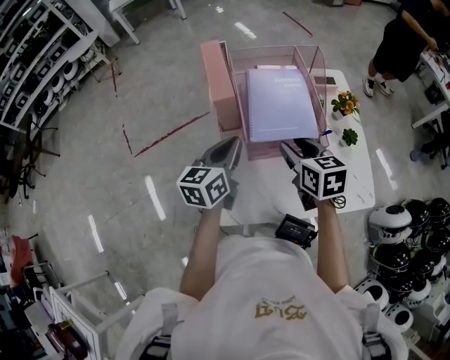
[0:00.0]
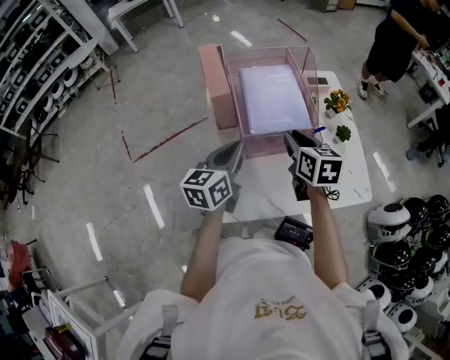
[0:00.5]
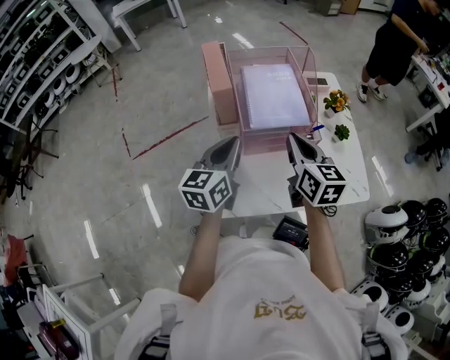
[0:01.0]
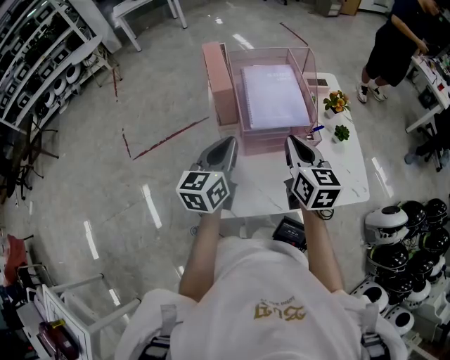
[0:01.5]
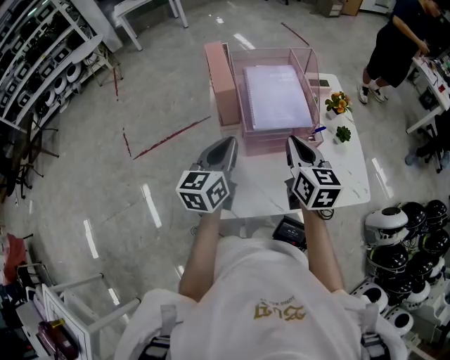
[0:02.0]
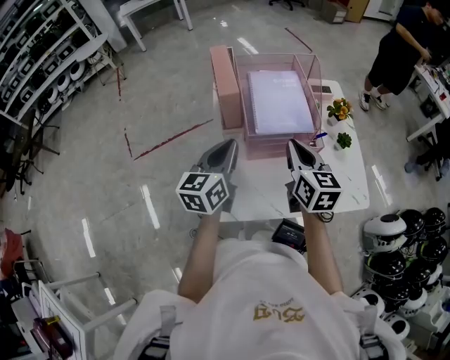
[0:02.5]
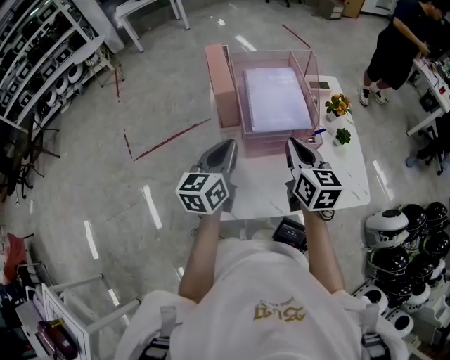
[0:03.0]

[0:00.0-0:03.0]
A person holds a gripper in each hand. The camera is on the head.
0:00.0 to 0:01.5: The right gripper moves approximately 5 cm, and closes up. The left gripper shifts approximately 5 cm backward.
0:01.5 to 0:03.0: The grippers move only a little.

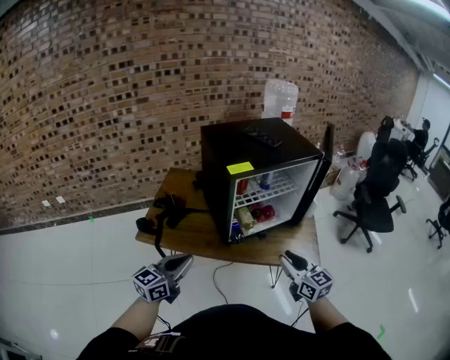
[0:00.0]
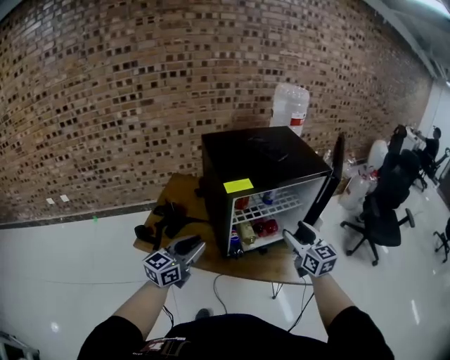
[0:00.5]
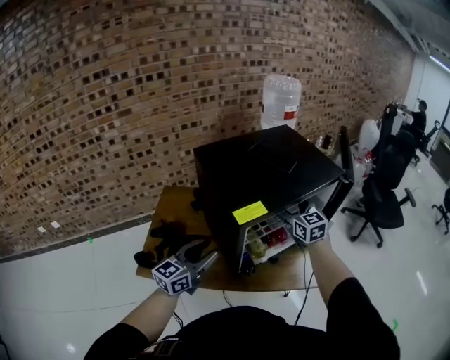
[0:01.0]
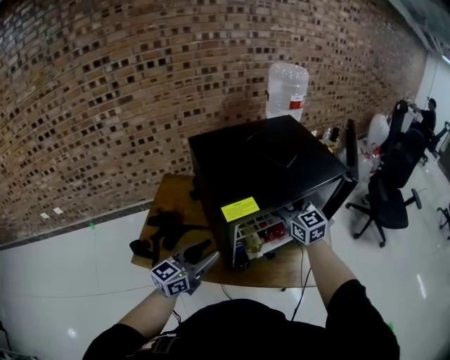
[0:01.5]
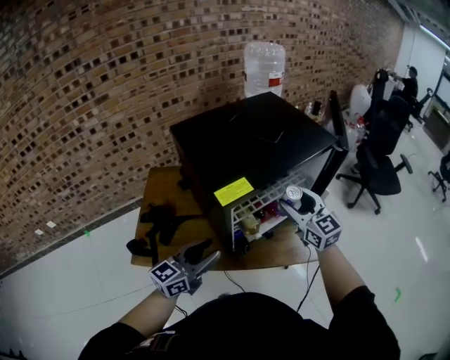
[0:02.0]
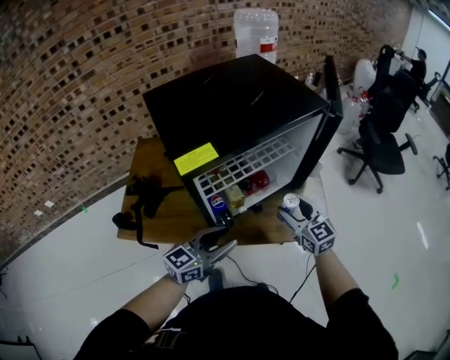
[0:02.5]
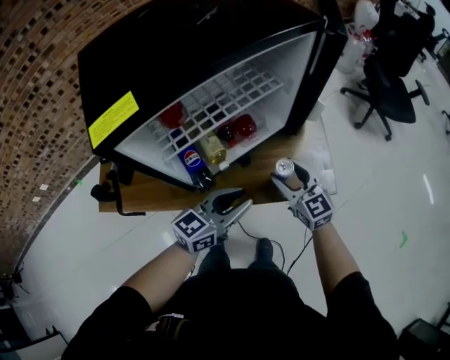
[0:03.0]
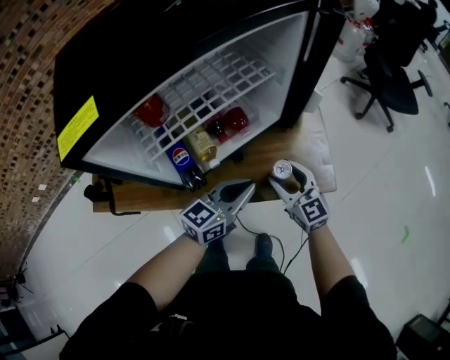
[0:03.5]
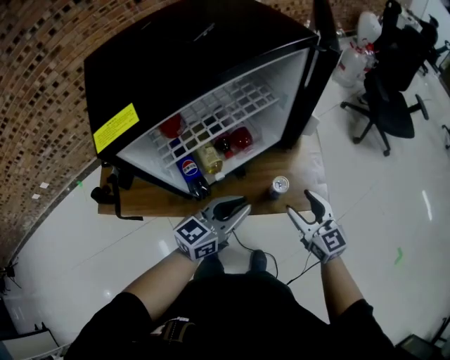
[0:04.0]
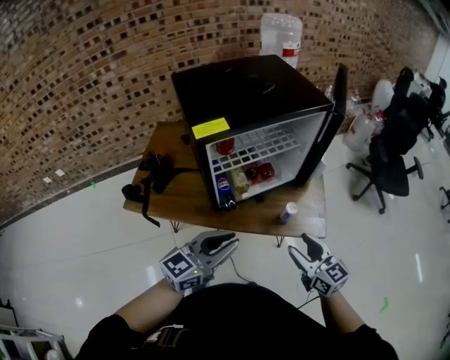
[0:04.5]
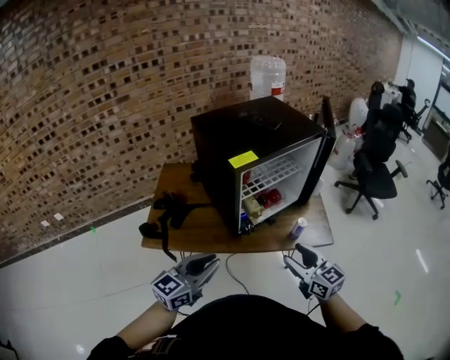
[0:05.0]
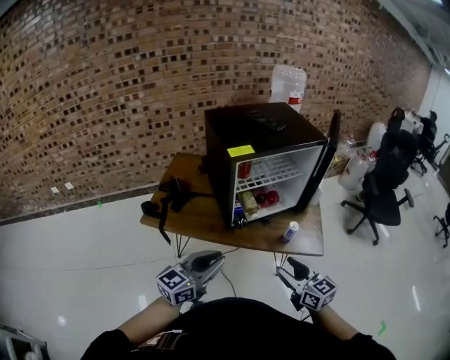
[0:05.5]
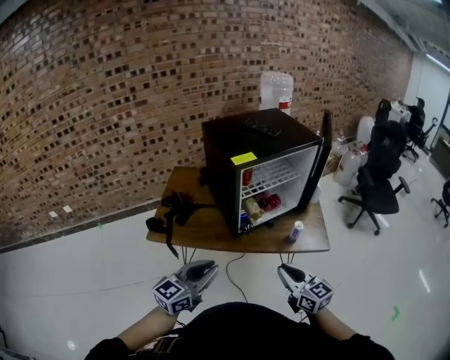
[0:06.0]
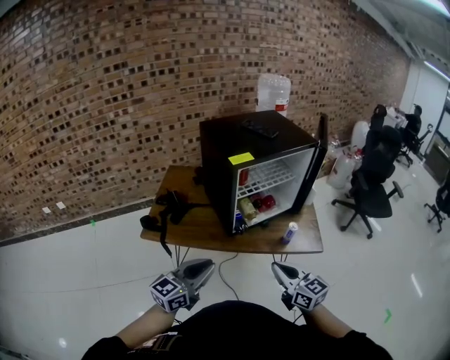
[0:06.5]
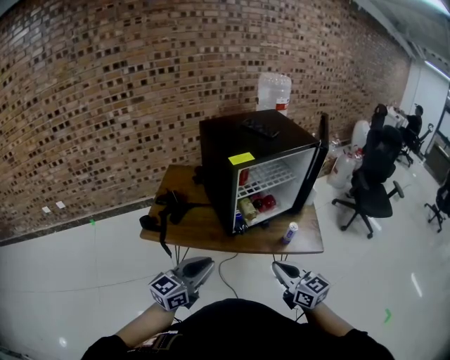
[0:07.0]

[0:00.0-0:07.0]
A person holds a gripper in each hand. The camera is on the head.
0:00.0 to 0:02.0: Both grippers move forward, about 25 cm. The right gripper opens, then closes again. Meanwhile the left gripper opens its fingers.
0:02.0 to 0:03.5: The left gripper shifts about 35 cm to the right and downward, and closes. Meanwhile the right gripper travels downward and to the right by some 35 cm.
0:03.5 to 0:05.0: The left gripper shifts approximately 50 cm backward, to the left and upward, while the right gripper shifts roughly 40 cm backward, upward and to the left.
0:05.0 to 0:07.0: The grippers both shift backward by about 5 cm. The left gripper goes to the right and returns, approximately 10 cm each way. Meanwhile the right gripper closes.

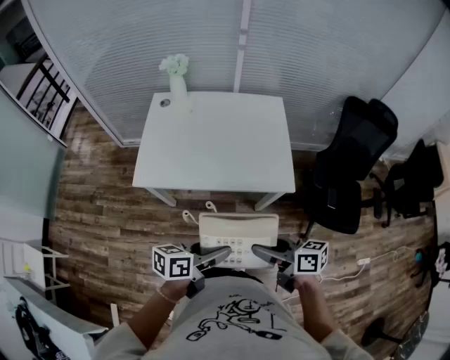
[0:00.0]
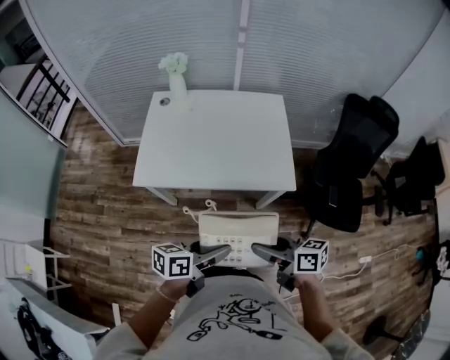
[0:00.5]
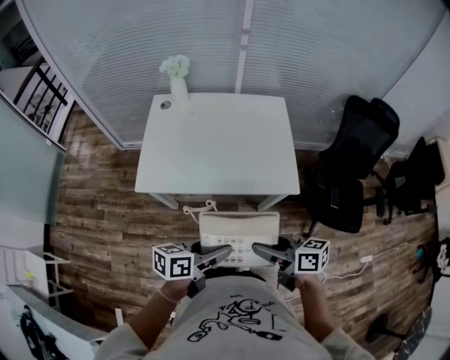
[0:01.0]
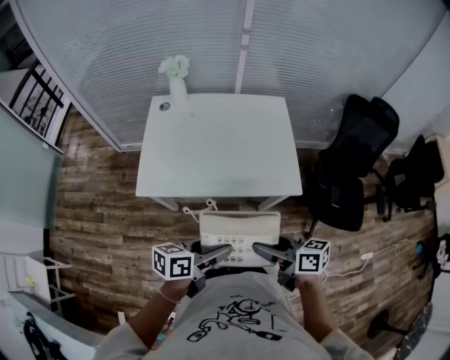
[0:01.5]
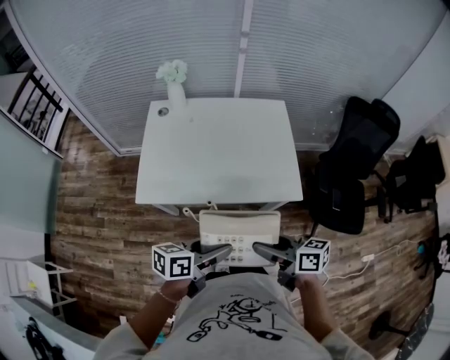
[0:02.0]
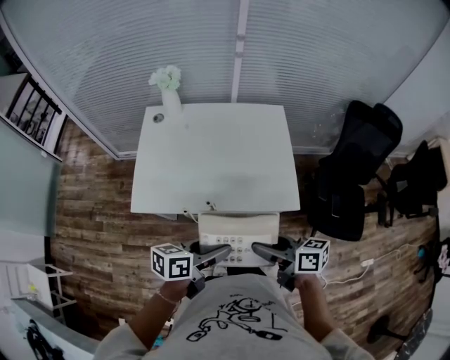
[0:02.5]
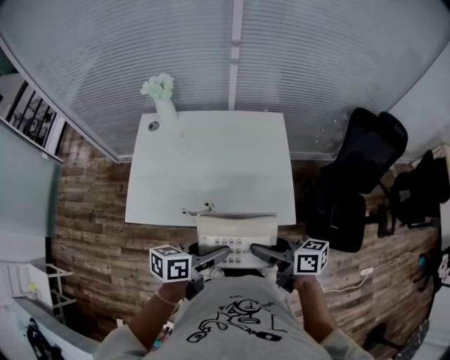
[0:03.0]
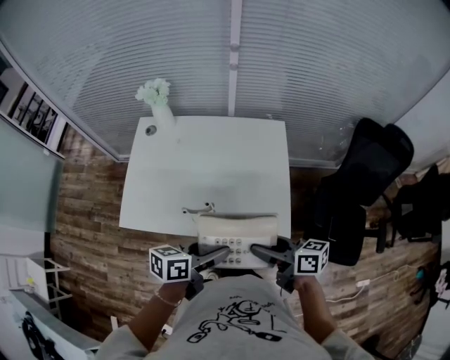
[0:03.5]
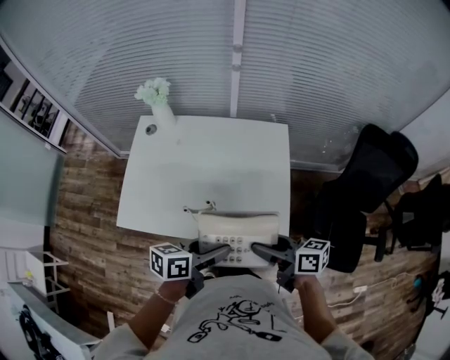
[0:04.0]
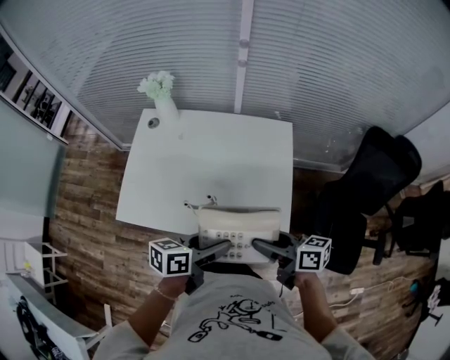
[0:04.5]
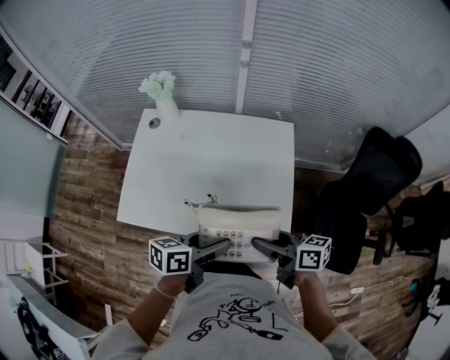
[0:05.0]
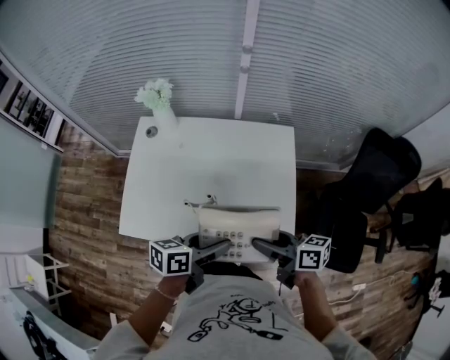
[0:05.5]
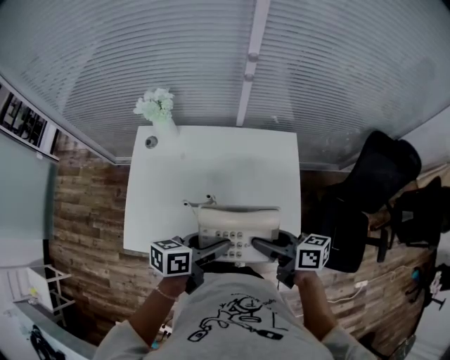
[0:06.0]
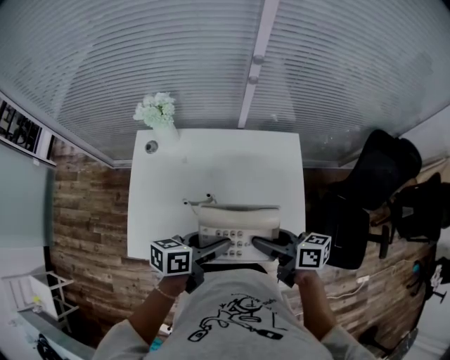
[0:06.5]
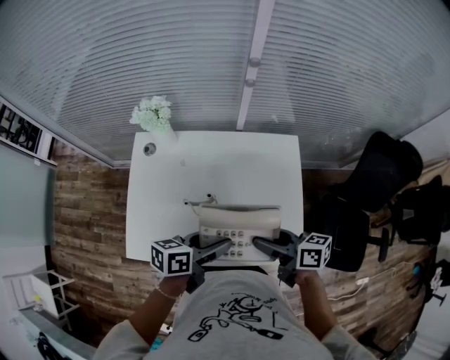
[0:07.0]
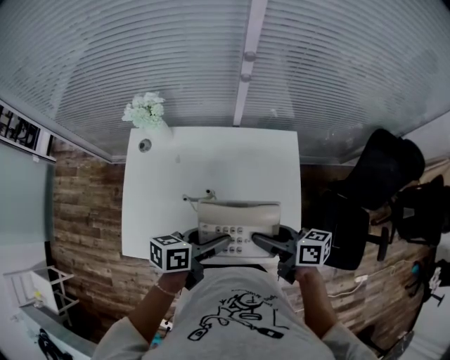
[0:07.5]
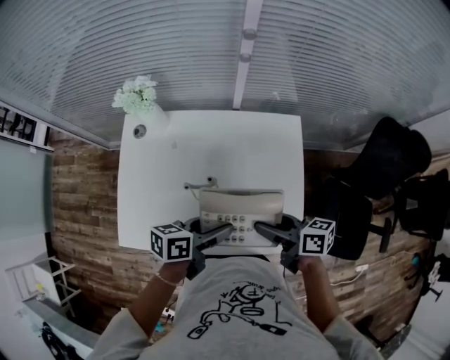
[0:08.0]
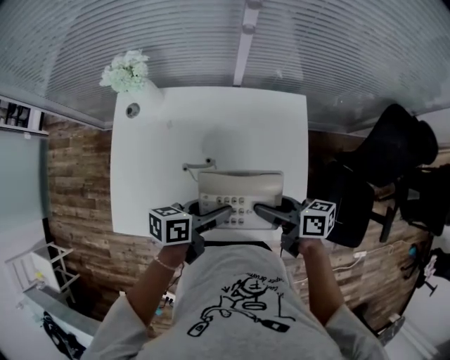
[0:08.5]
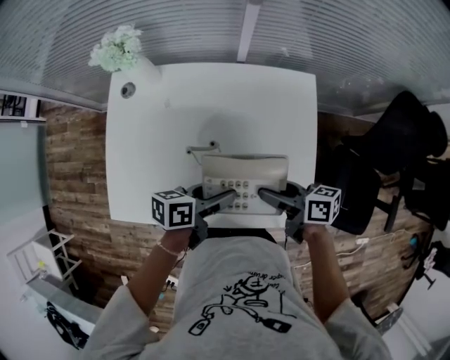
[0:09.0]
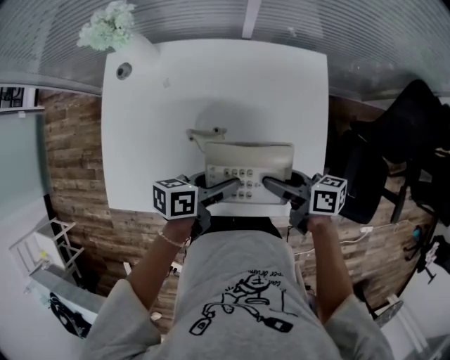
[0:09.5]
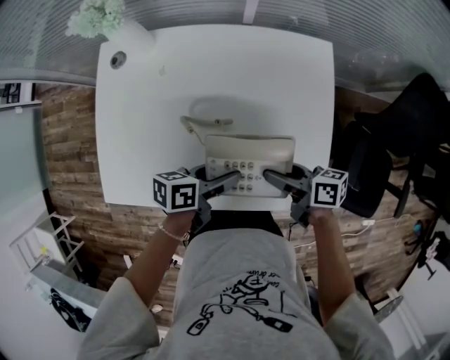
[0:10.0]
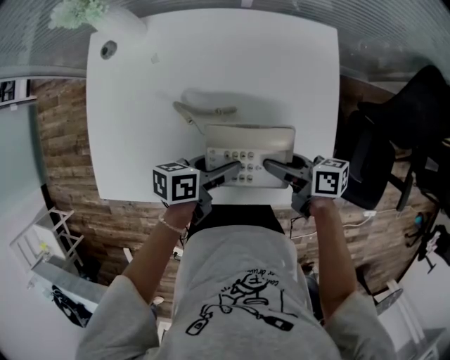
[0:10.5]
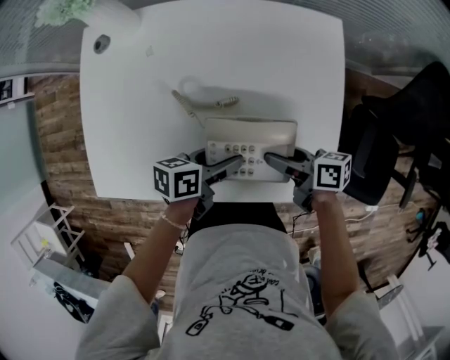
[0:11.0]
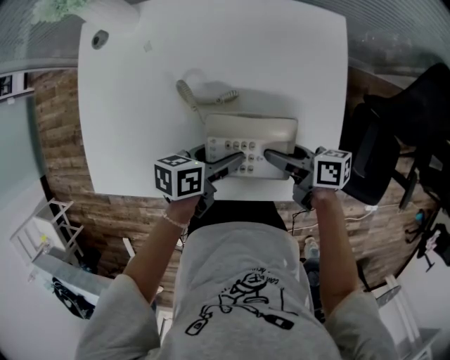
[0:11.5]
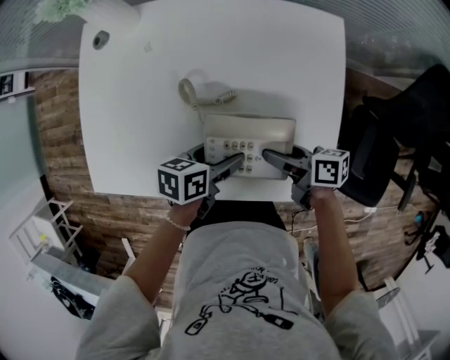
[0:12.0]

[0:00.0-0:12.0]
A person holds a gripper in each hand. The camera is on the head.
0:00.0 to 0:02.0: The grippers both shift forward by roughly 5 cm.
0:02.0 to 0:04.0: Both grippers move forward and to the right, some 20 cm.
0:04.0 to 0:06.0: The grippers both shift forward and to the left by about 10 cm.
0:06.0 to 0:08.0: Both grippers travel together forward, approximately 5 cm.
0:08.0 to 0:10.0: The grippers both shift downward by approximately 15 cm.
0:10.0 to 0:12.0: The two grippers go approximately 5 cm downward.

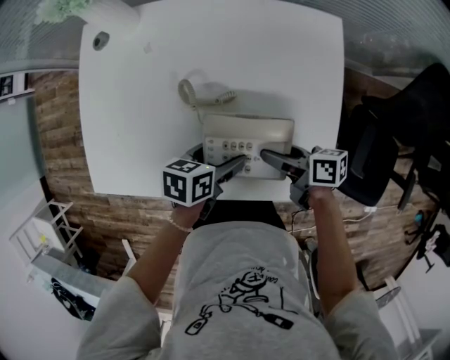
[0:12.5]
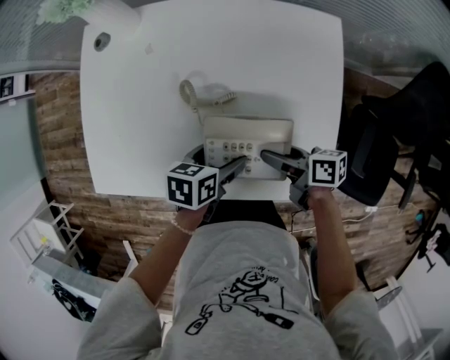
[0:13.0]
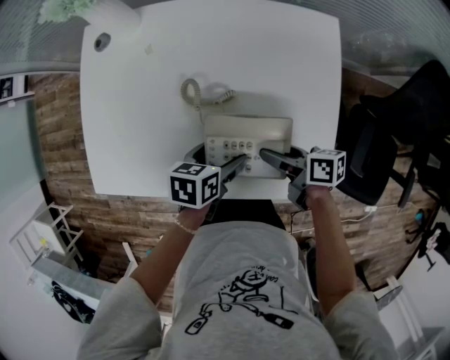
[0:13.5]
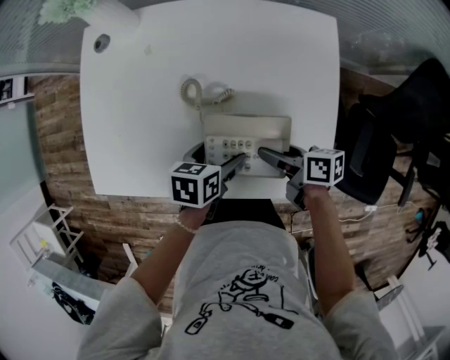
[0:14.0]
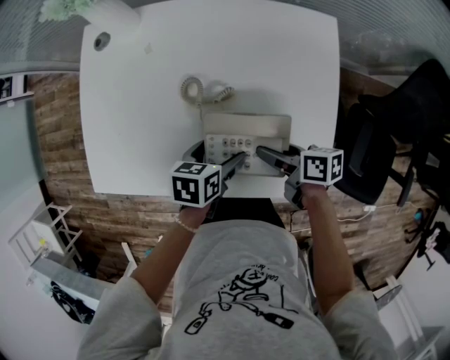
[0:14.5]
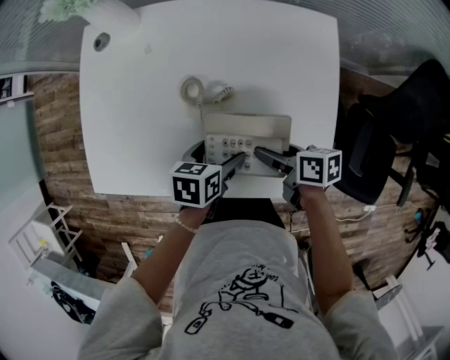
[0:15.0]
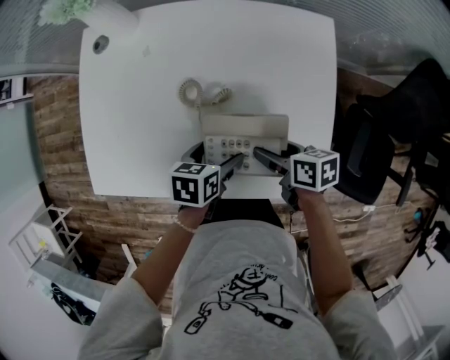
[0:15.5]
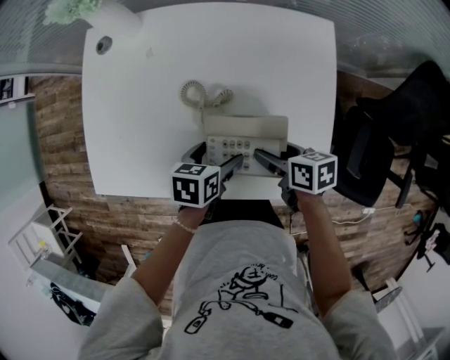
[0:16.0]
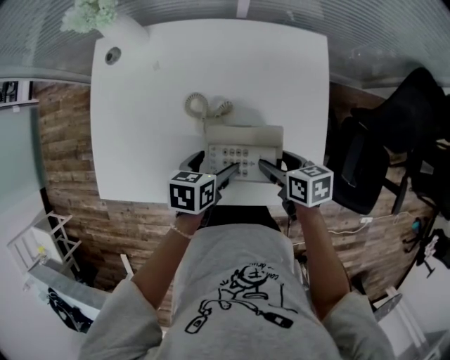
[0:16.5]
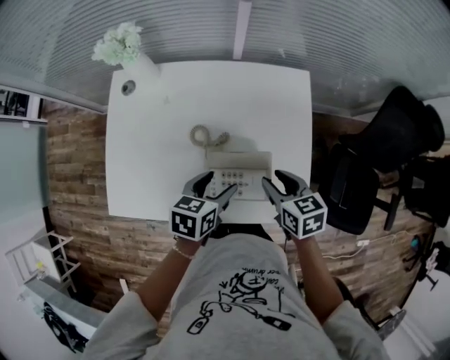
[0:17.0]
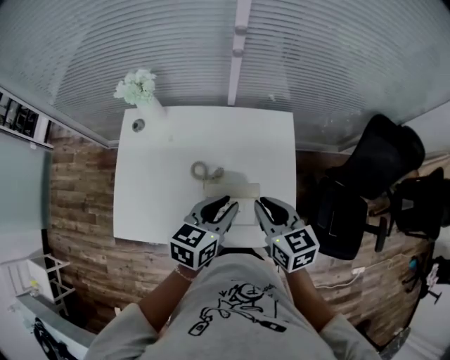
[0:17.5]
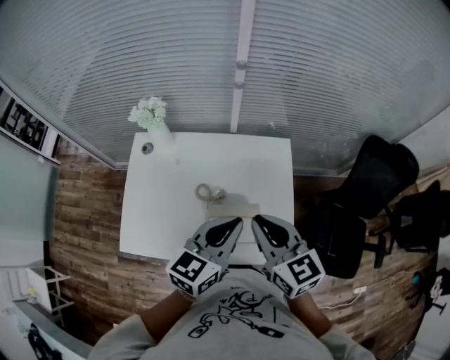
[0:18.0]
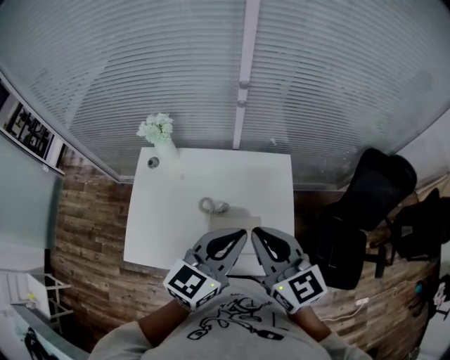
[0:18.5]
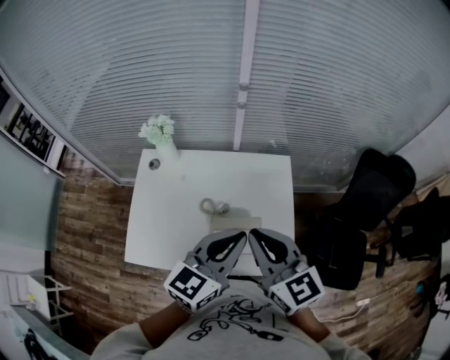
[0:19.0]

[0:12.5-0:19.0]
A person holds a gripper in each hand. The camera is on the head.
0:12.5 to 0:14.5: The grippers move only a little.
0:14.5 to 0:17.0: Both grippers travel together upward, some 10 cm. The right gripper turns by some 40 degrees, and closes its fingers.
0:17.0 to 0:19.0: The grippers both shift upward by about 30 cm. The right gripper points its fingers about 30 degrees further upward, and closes. Meanwhile the left gripper tips its fingers upward by some 40 degrees, and closes.
